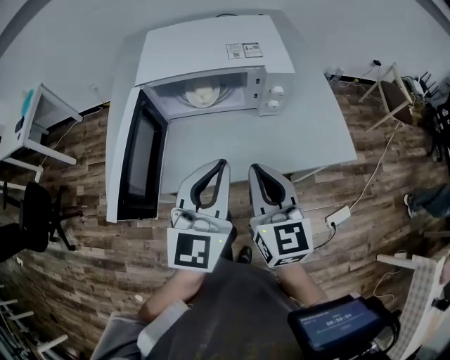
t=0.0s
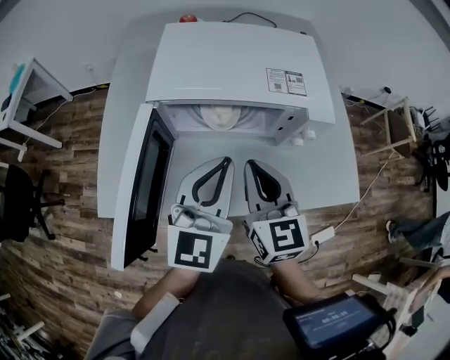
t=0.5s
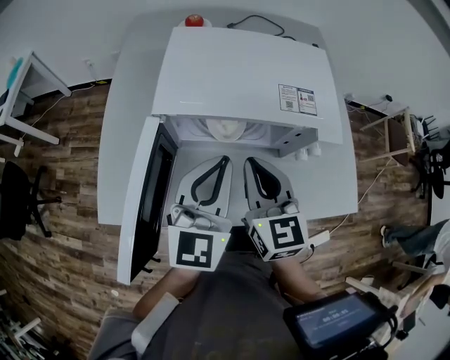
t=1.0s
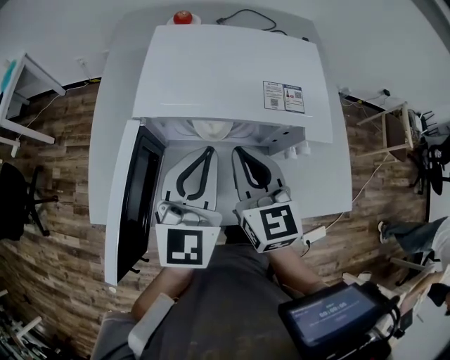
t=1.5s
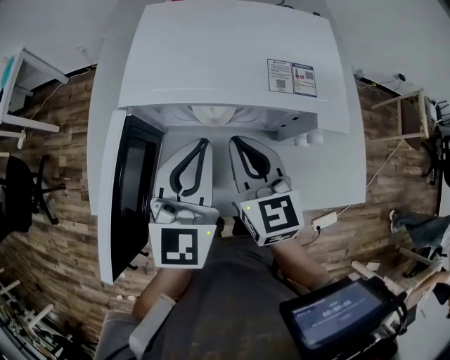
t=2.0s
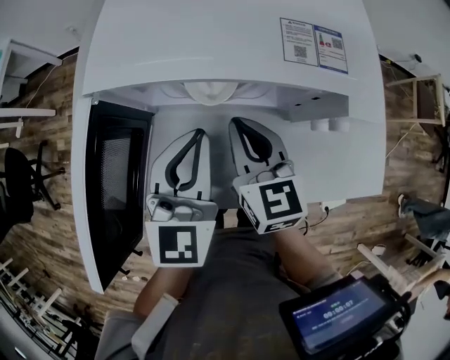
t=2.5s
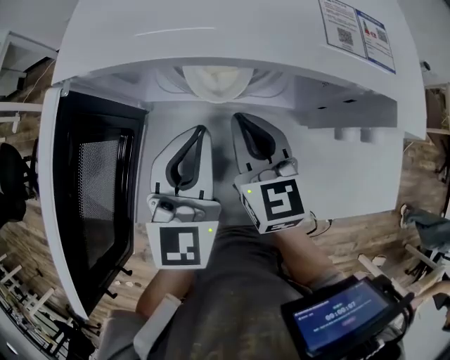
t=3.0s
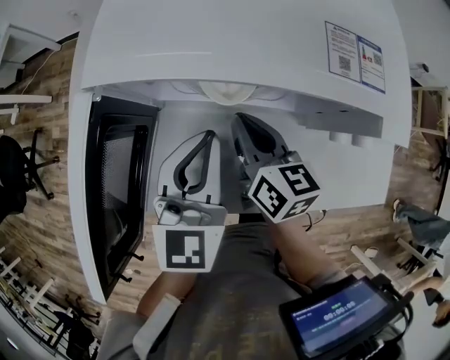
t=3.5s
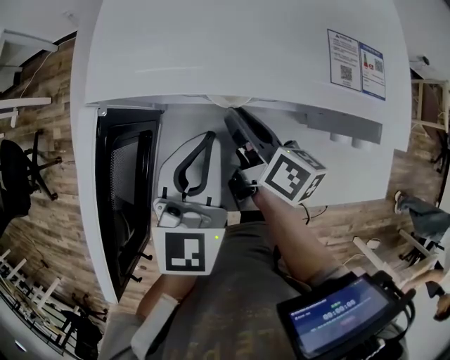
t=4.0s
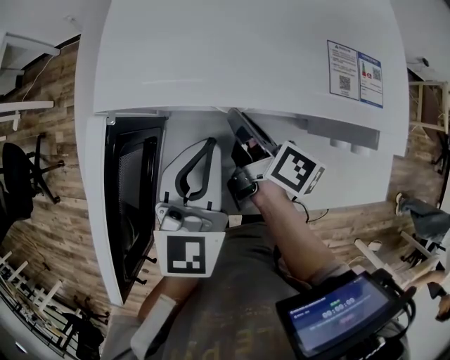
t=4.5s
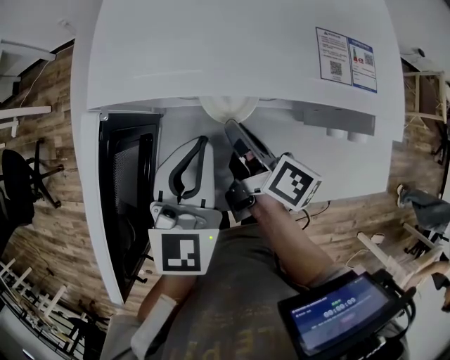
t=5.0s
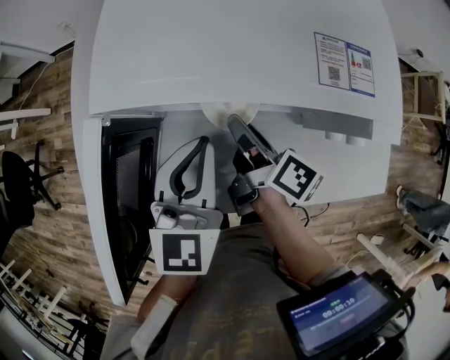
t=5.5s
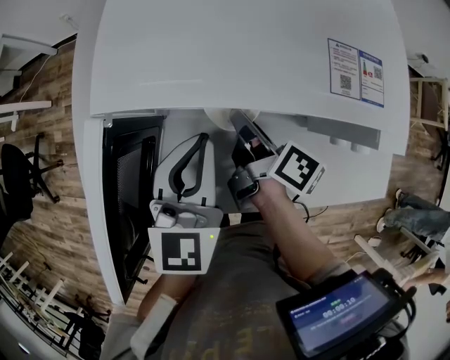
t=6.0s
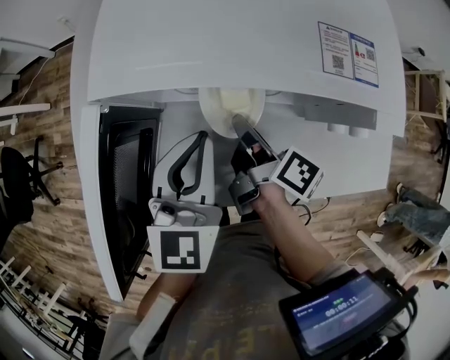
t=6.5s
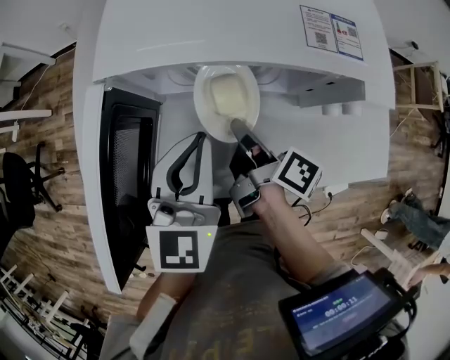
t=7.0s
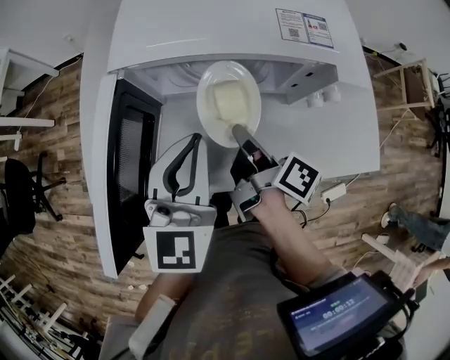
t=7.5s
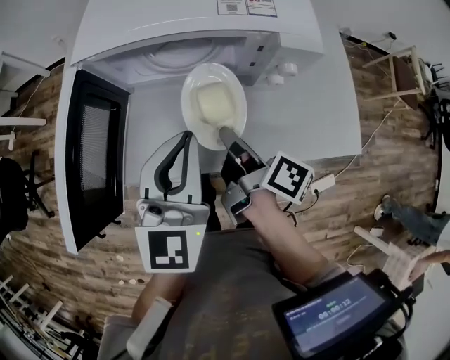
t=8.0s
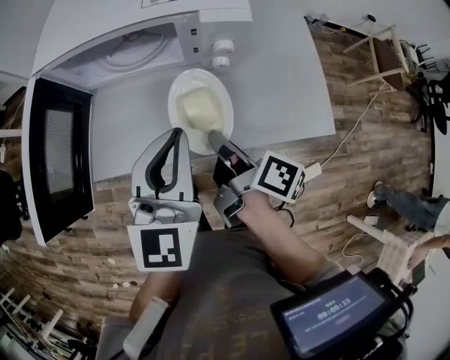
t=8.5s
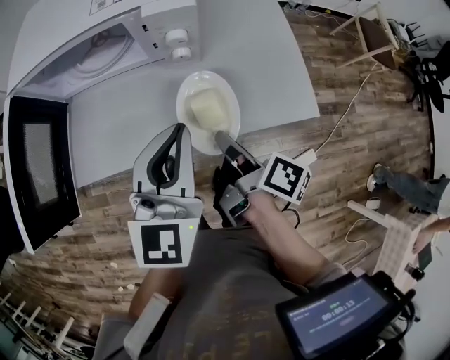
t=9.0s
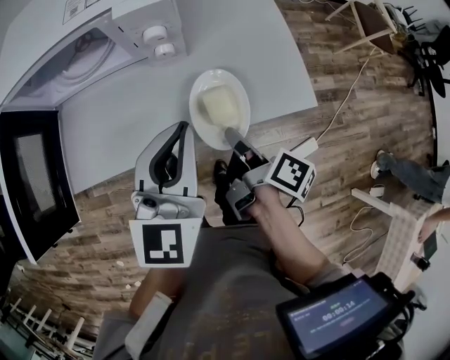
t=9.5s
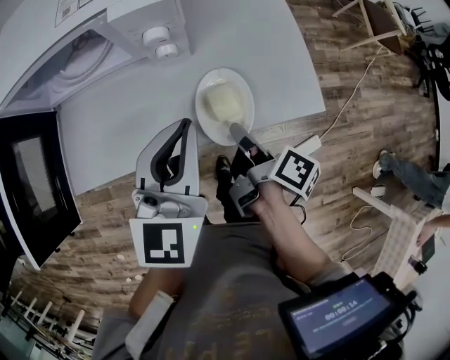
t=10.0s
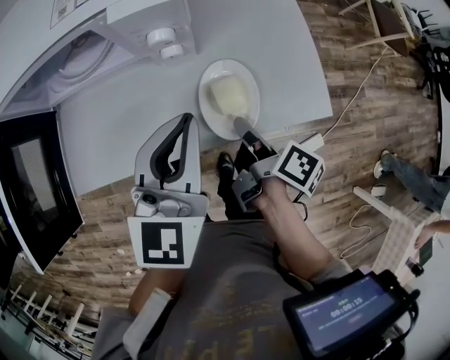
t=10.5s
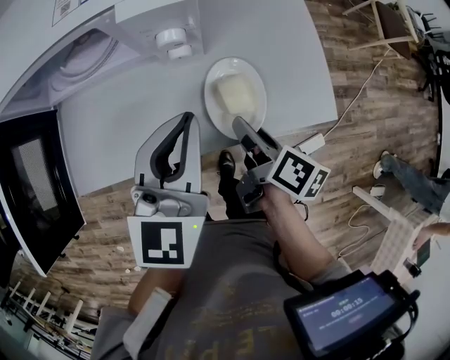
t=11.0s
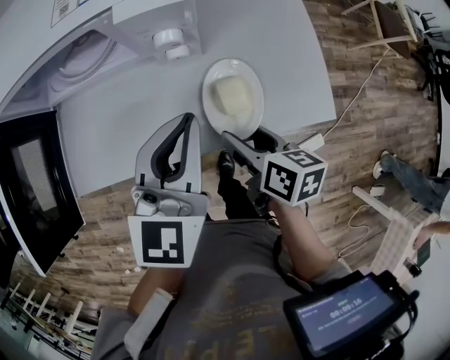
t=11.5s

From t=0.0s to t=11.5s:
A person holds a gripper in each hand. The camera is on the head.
From t=0.0s to t=2.0s: The two grippers go approximately 20 cm forward.
From t=2.0s to t=4.0s: The two grippers go roughly 10 cm downward. The right gripper twists roughly 50 degrees clockwise, seen from behind.
From t=4.0s to t=6.0s: The grippers stay close to where they were, moving slightly.
From t=6.0s to t=7.5s: The right gripper goes roughly 10 cm backward. The left gripper travels backward and upward by about 10 cm.
From t=7.5s to t=9.5s: The right gripper travels to the right and backward by about 30 cm. Meanwhile the left gripper is displaced to the right by some 25 cm.
From t=9.5s to t=11.5s: The right gripper turns by some 40 degrees, and opens. Meanwhile the left gripper shifts by about 5 cm.

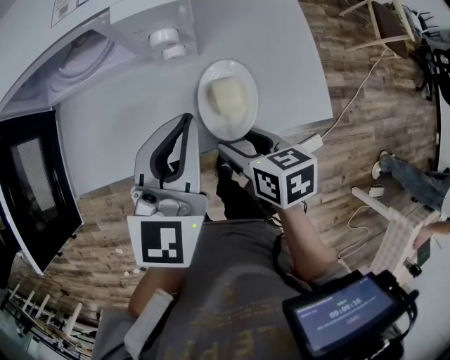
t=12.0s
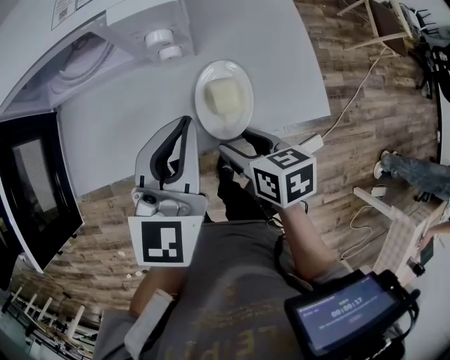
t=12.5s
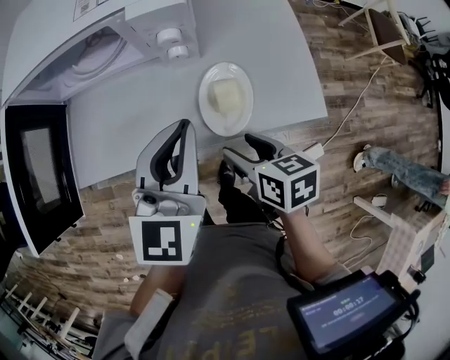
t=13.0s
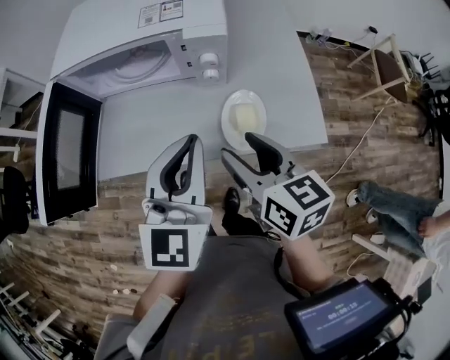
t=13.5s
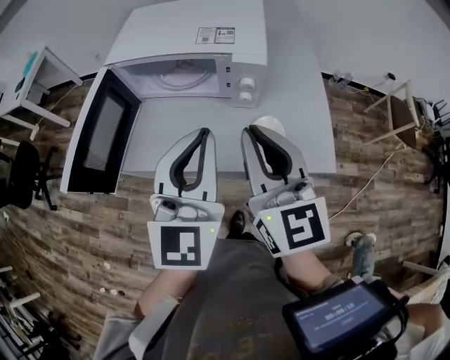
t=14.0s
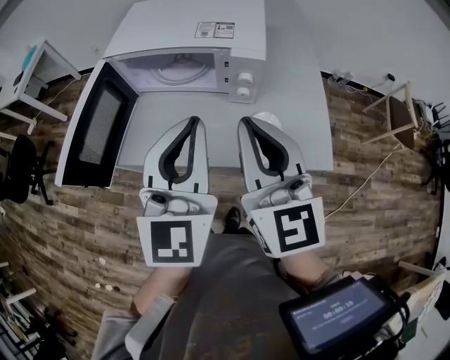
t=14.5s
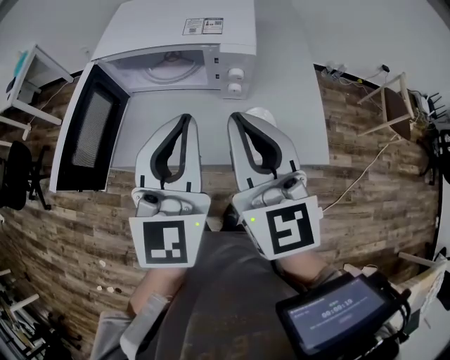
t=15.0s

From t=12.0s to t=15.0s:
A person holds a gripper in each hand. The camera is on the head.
From t=12.0s to t=13.5s: The left gripper travels upward by approximately 5 cm, while the right gripper goes some 15 cm upward, and turns by some 30 degrees.
From t=13.5s to t=15.0s: The right gripper heads upward, covering some 15 cm, changes its angle by about 40 degrees, and closes its fingers. Meanwhile the left gripper travels upward by some 10 cm.

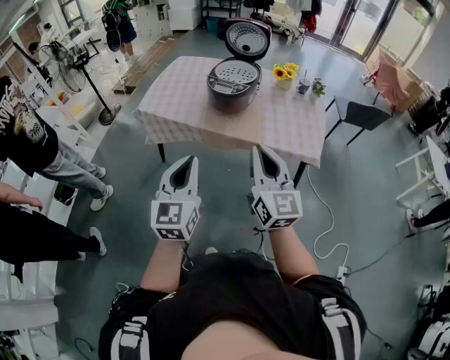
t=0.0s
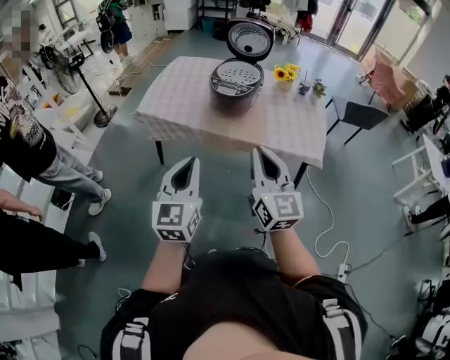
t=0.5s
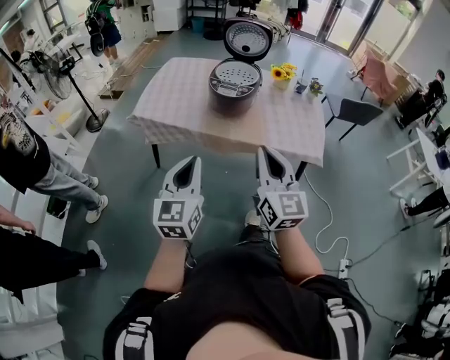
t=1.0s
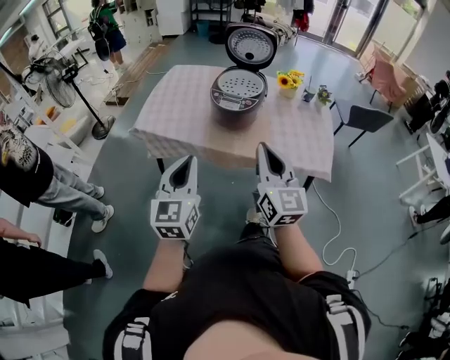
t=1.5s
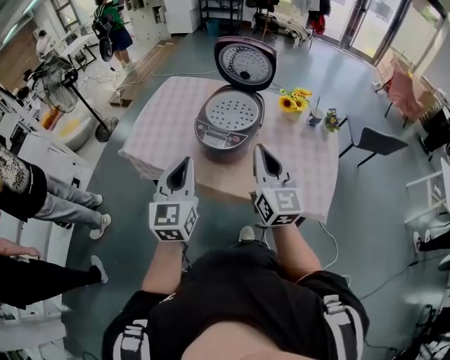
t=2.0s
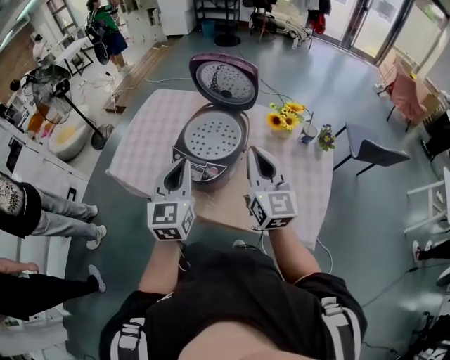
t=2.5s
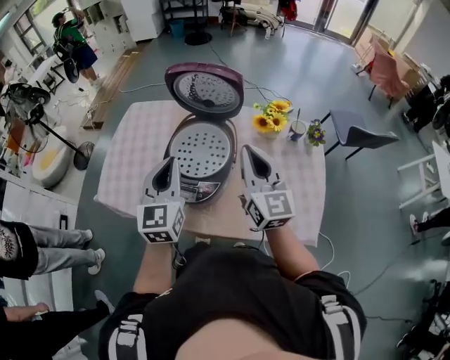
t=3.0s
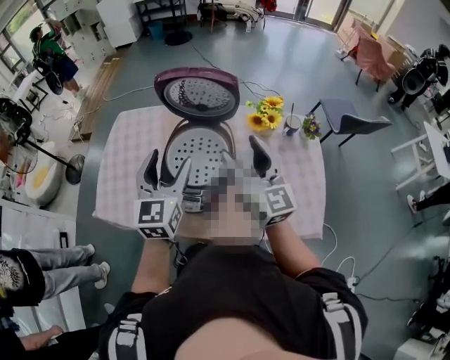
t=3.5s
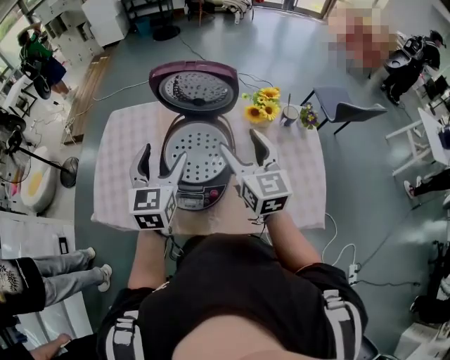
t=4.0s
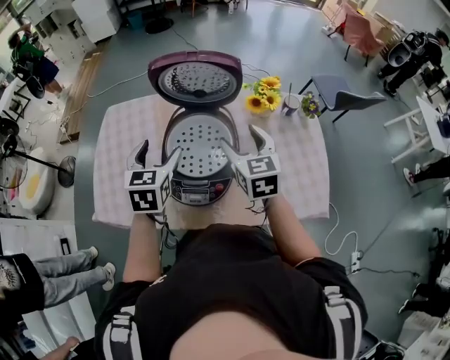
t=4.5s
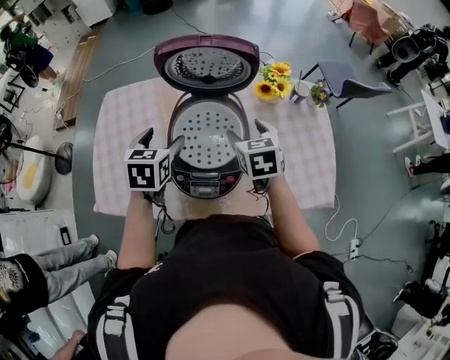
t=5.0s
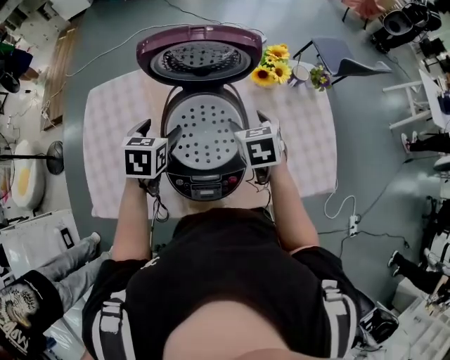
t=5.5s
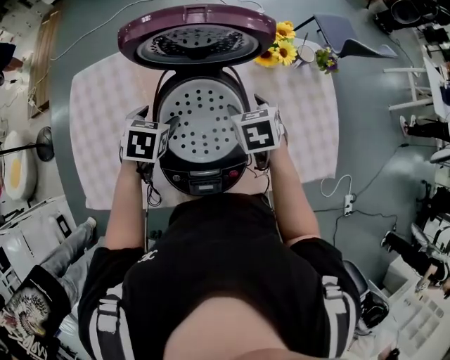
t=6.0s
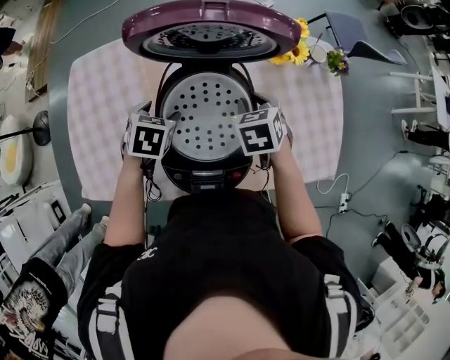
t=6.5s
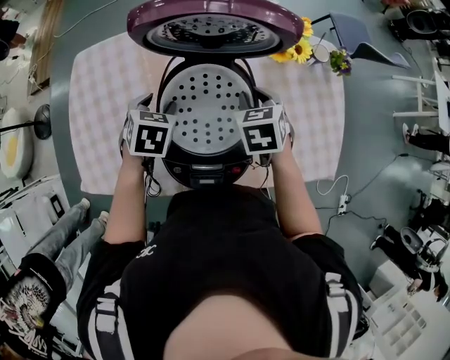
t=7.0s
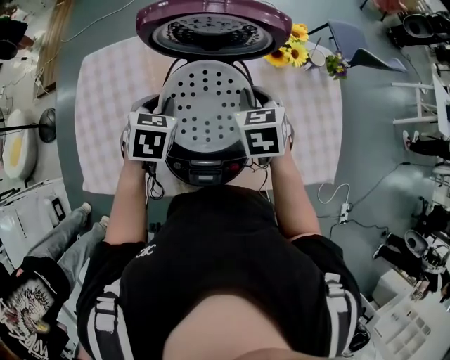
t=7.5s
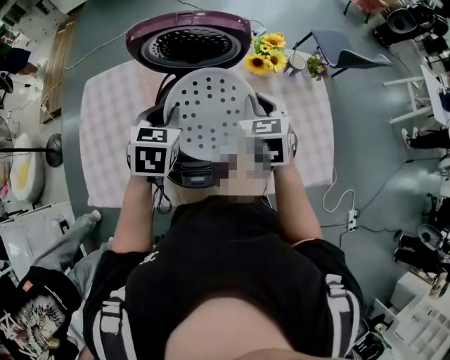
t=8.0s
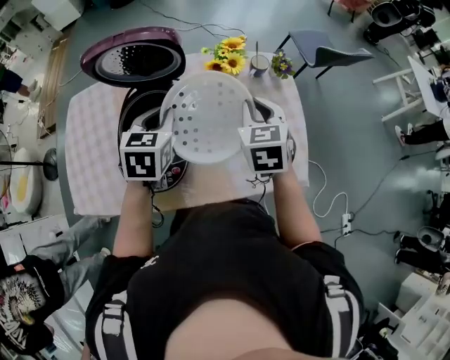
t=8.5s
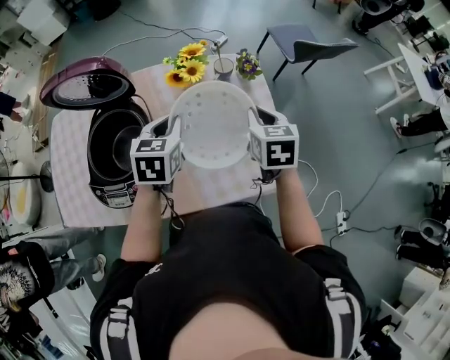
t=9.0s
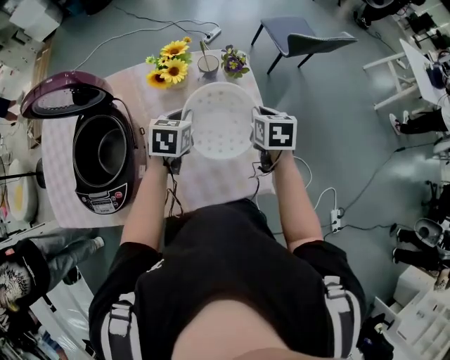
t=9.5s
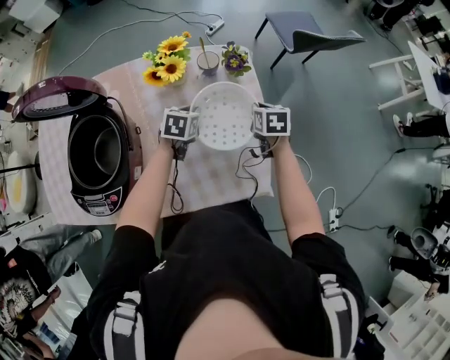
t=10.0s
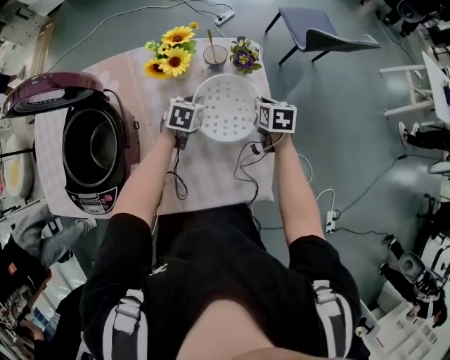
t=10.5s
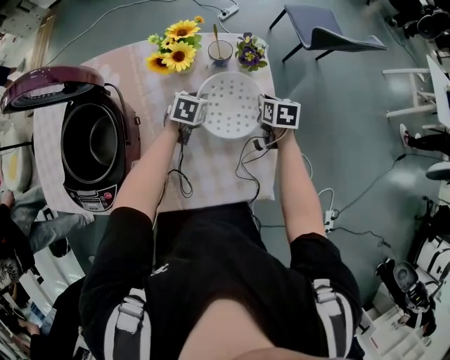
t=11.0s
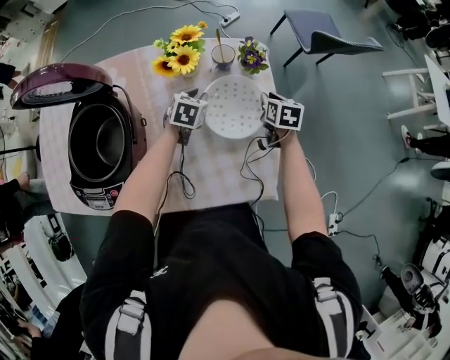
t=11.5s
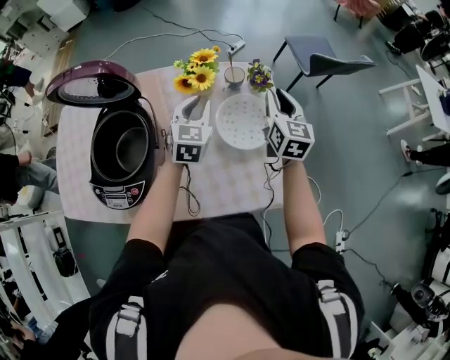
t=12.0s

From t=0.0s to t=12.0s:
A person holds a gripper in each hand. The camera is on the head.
From t=0.0s to t=2.0s: Both grippers move forward, about 35 cm.
From t=2.0s to t=4.0s: Both grippers travel together forward, roughly 30 cm. The left gripper opens its fingers. Meanwhile the right gripper opens up.
From t=4.0s to t=6.0s: The grippers both shift downward and forward by approximately 25 cm. The left gripper tilts its fingers roughly 40 degrees downward. Meanwhile the right gripper tips its fingers downward by about 50 degrees.
From t=6.0s to t=8.0s: The left gripper travels upward and to the right by about 15 cm, and closes, while the right gripper travels upward by some 10 cm, and closes up.
From t=8.0s to t=10.0s: Both grippers are carried to the right, approximately 40 cm. The grippers both shift downward by roughly 20 cm. The right gripper changes its angle by some 30 degrees.
From t=10.0s to t=12.0s: The grippers both shift upward by about 15 cm. The right gripper angles its fingers upward, by approximately 40 degrees, while the left gripper changes its angle by approximately 30 degrees.
